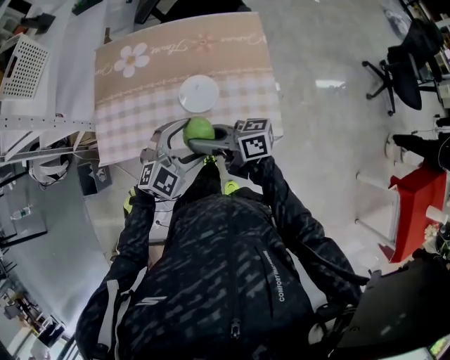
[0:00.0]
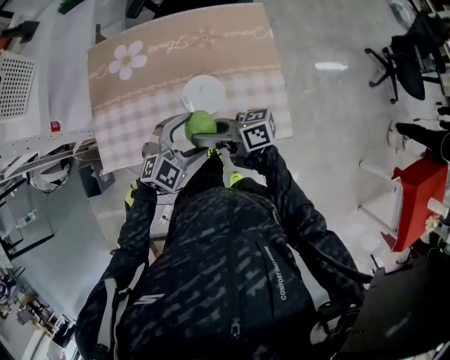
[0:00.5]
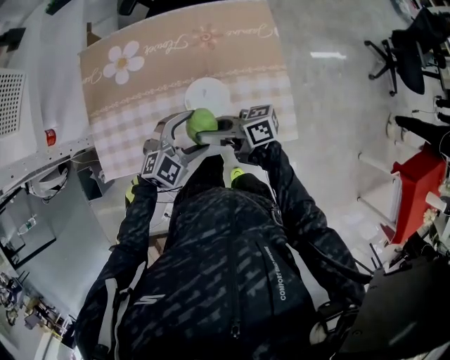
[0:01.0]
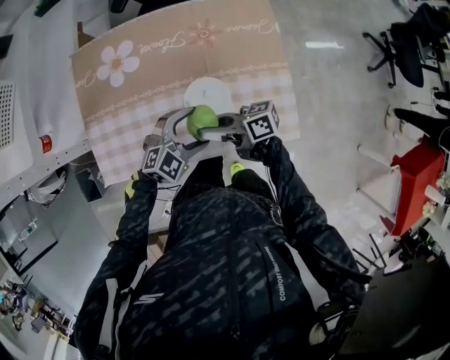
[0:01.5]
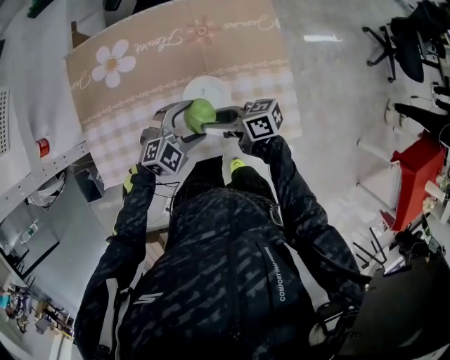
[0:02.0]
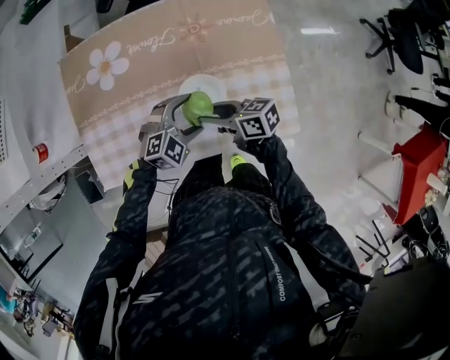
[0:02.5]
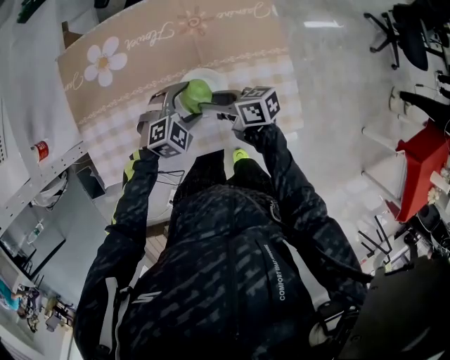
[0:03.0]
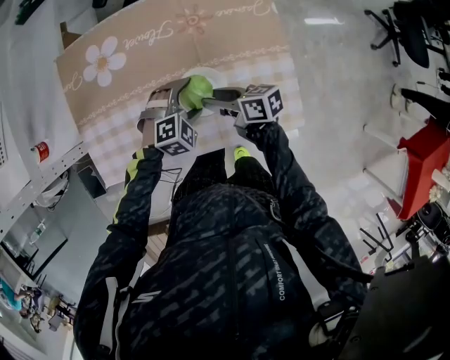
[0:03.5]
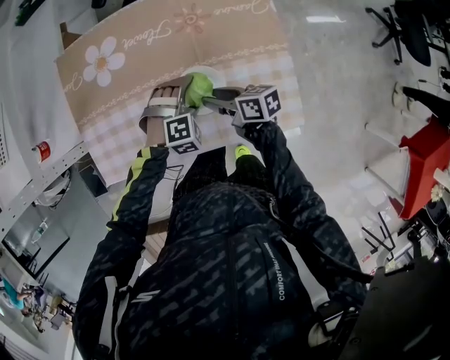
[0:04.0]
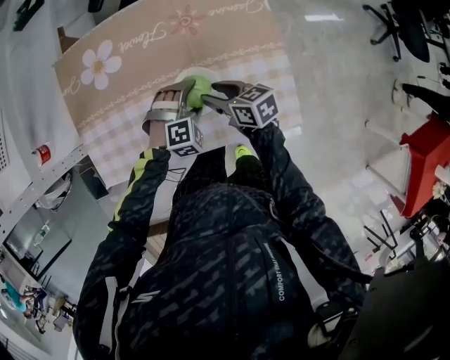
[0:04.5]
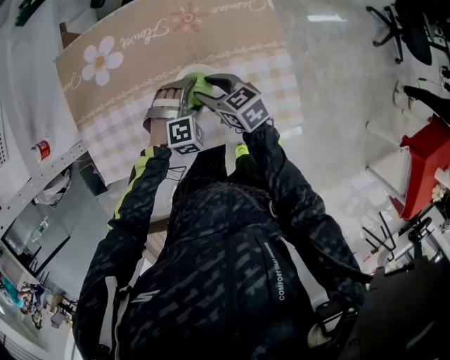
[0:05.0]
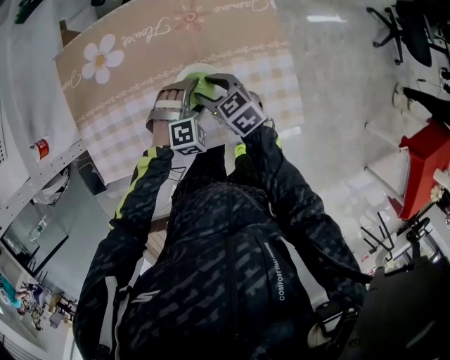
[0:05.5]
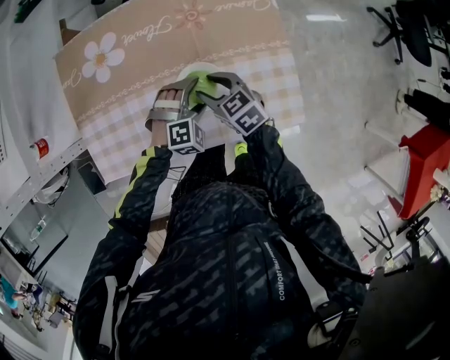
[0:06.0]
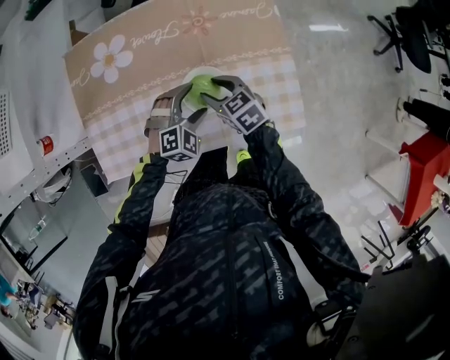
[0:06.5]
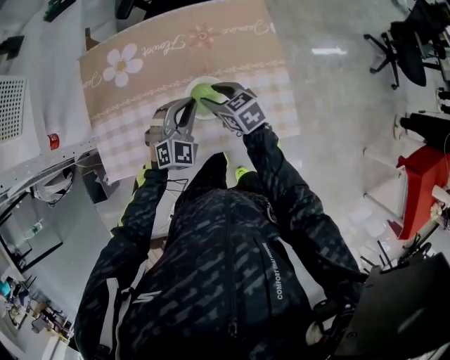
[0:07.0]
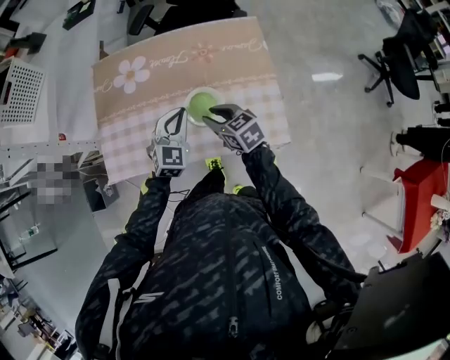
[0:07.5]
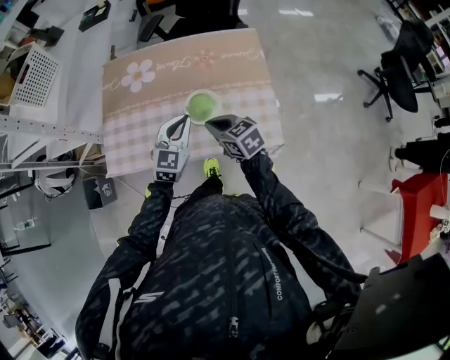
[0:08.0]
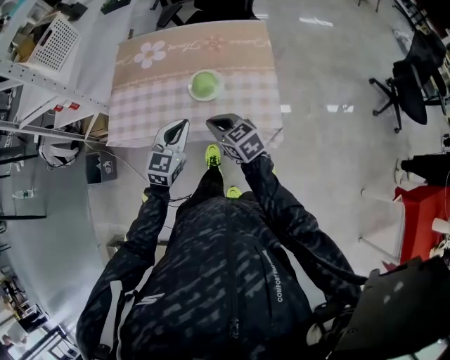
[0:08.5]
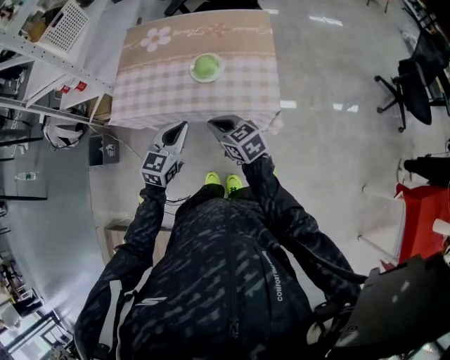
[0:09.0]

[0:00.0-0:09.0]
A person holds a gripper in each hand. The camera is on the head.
0:00.0 to 0:02.0: The grippers both shift downward by approximately 15 cm.
0:02.0 to 0:04.5: The left gripper travels downward by roughly 5 cm, and turns by roughly 30 degrees; the right gripper changes place by approximately 10 cm, and changes its angle by about 30 degrees.
0:04.5 to 0:07.0: The right gripper swivels approximately 20 degrees, while the left gripper is displaced upward by roughly 10 cm, tips its fingers upward by about 30 degrees, and closes its fingers.
0:07.0 to 0:09.0: Both grippers move backward, approximately 30 cm. The right gripper closes. The left gripper rolls counterclockwise, seen from behind, by approximately 40 degrees.

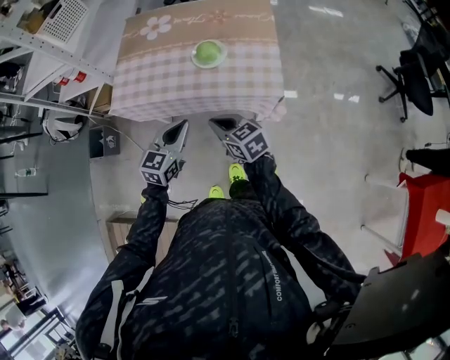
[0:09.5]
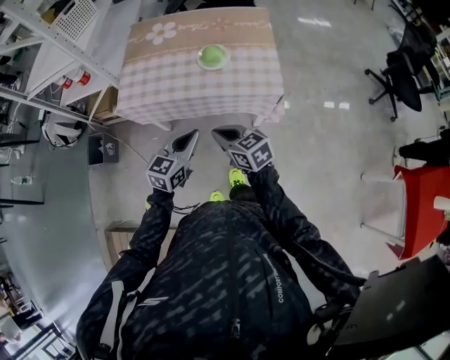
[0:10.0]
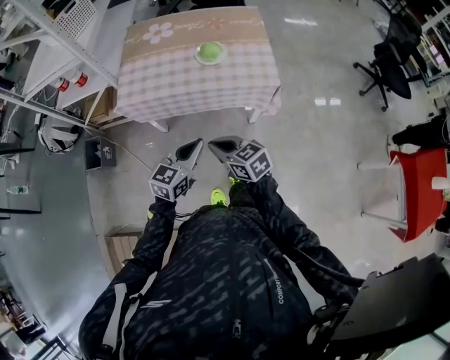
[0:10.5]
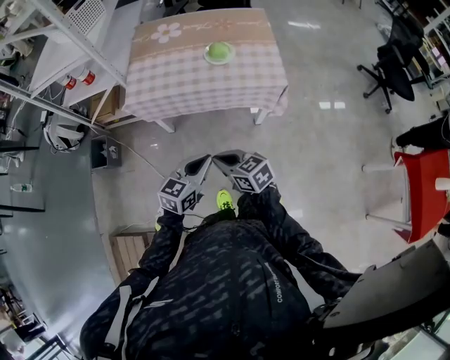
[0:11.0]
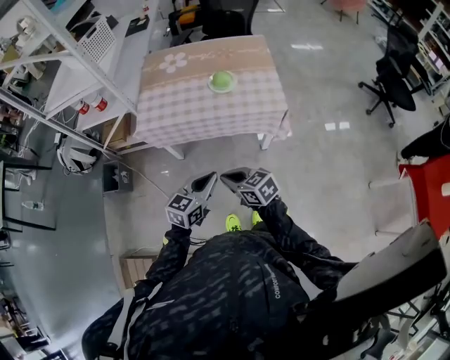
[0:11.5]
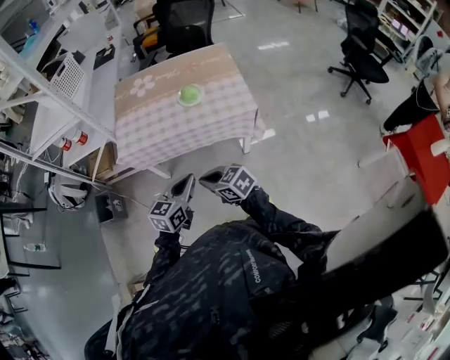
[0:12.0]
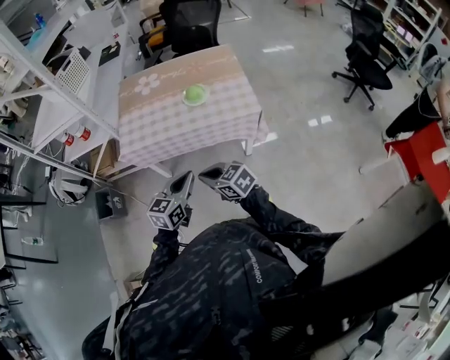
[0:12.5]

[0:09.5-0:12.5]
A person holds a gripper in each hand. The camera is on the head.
0:09.5 to 0:11.0: The right gripper is displaced backward and to the left by roughly 20 cm; the left gripper is displaced backward by about 20 cm.
0:11.0 to 0:12.5: The left gripper shifts by roughly 5 cm.

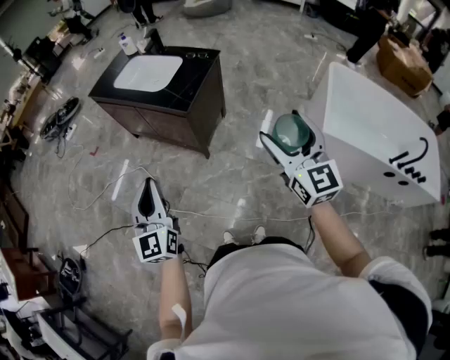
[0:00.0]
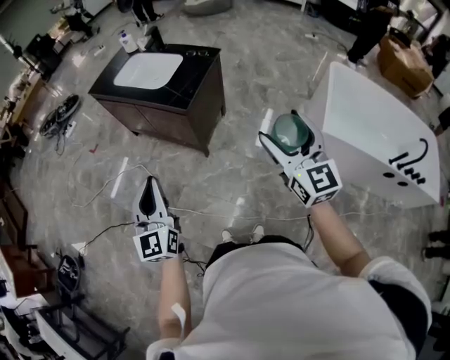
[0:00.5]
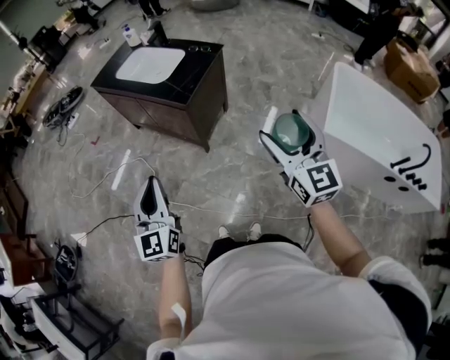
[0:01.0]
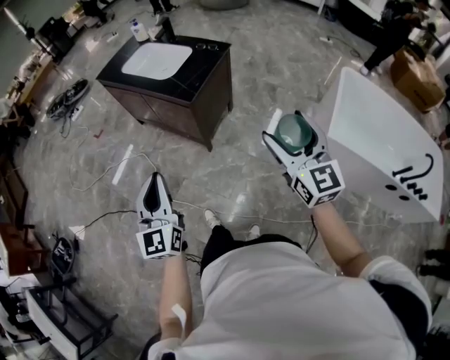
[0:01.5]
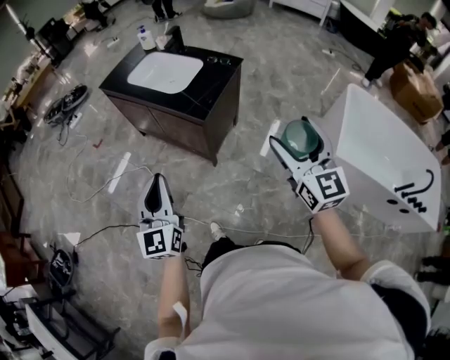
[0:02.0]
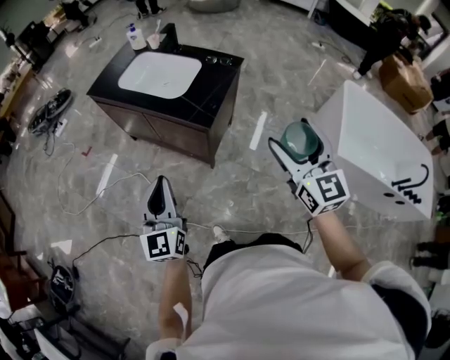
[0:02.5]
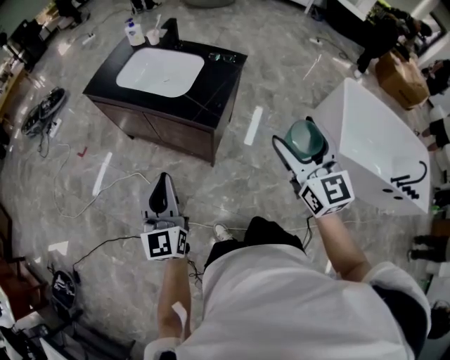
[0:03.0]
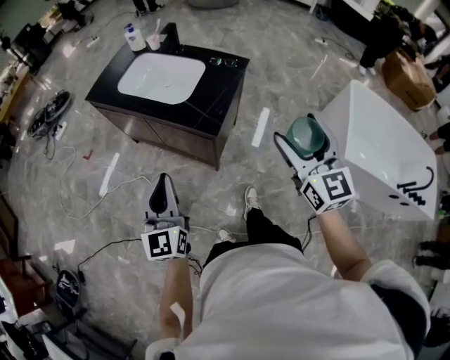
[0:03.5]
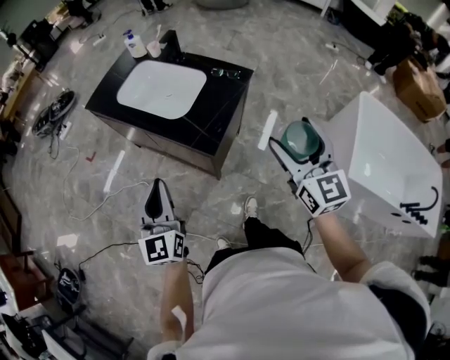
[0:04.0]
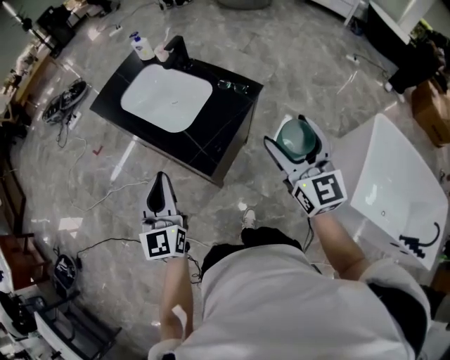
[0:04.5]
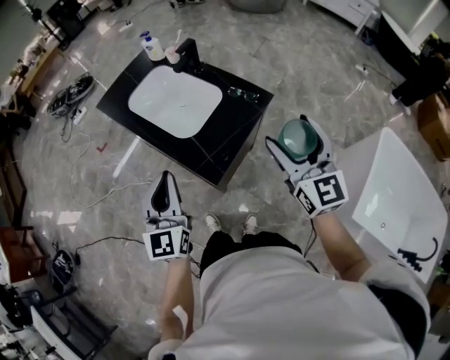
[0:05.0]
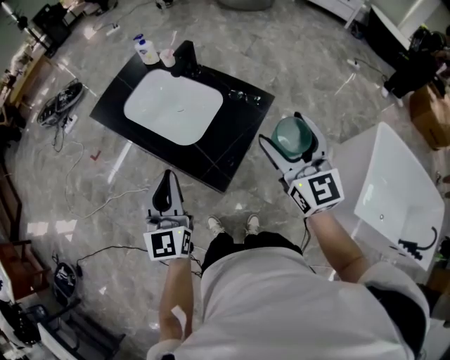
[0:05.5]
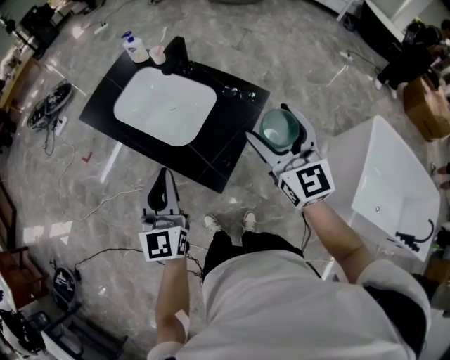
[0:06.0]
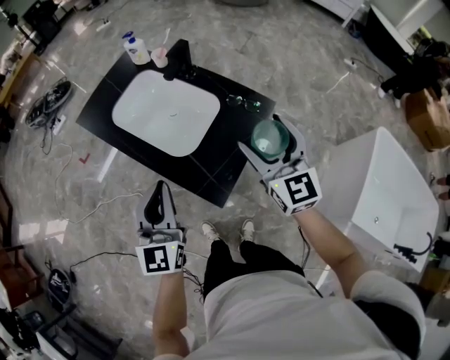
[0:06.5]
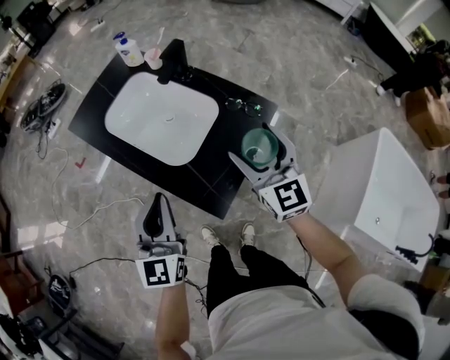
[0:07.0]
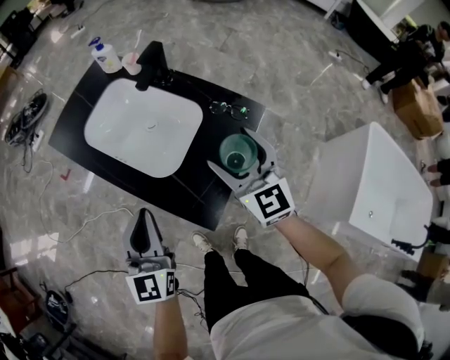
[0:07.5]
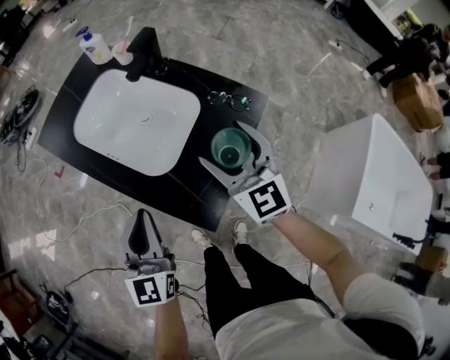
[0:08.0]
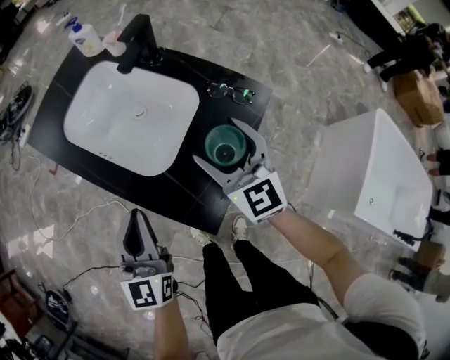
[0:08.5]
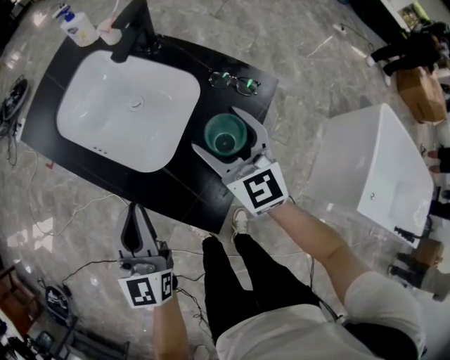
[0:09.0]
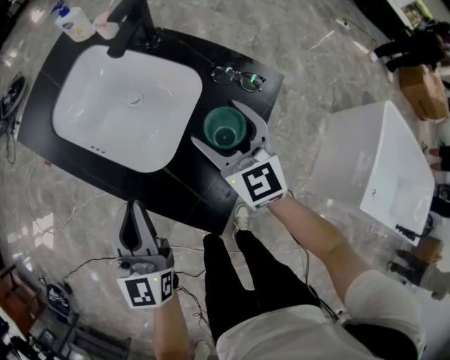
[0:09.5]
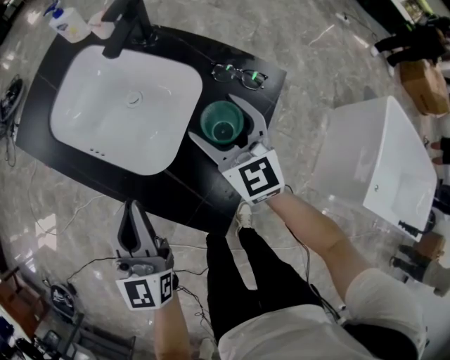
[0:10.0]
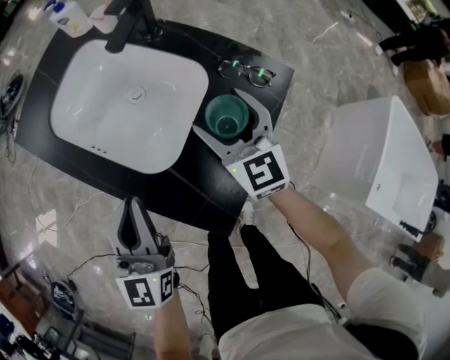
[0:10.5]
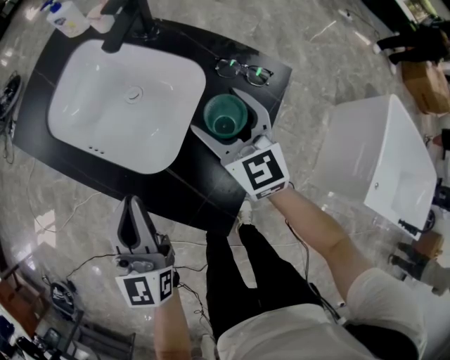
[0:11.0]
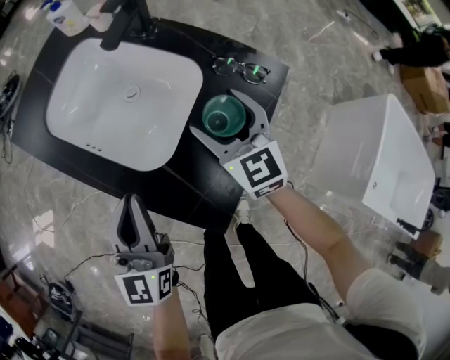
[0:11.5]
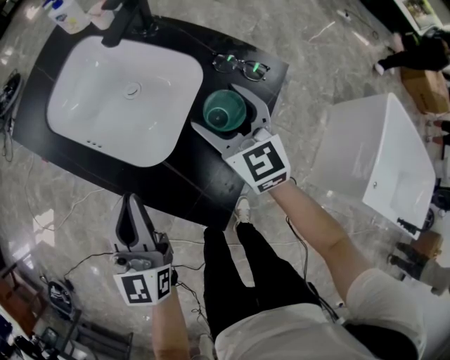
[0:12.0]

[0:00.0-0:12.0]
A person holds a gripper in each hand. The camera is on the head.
0:00.0 to 0:02.0: The two grippers go roughly 5 cm forward.
0:02.0 to 0:04.0: Both grippers travel together forward, about 20 cm.
0:04.0 to 0:06.0: Both grippers move forward, some 20 cm.
0:06.0 to 0:08.0: The right gripper is displaced downward and forward by approximately 20 cm. Meanwhile the left gripper goes about 10 cm downward and forward.
0:08.0 to 0:10.0: The left gripper moves about 5 cm. Meanwhile the right gripper heads downward and forward, covering roughly 10 cm.
0:10.0 to 0:12.0: The grippers move only a little.

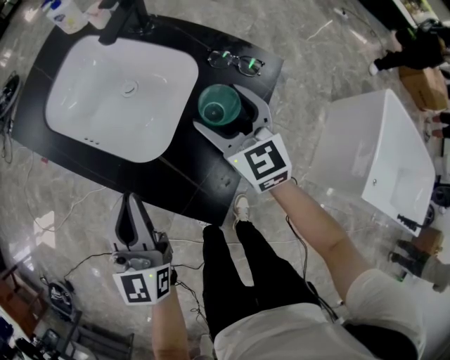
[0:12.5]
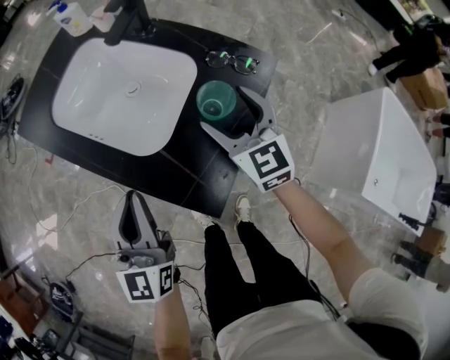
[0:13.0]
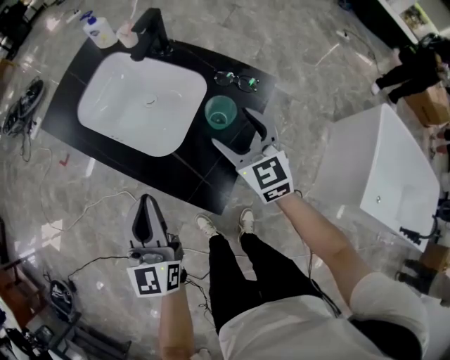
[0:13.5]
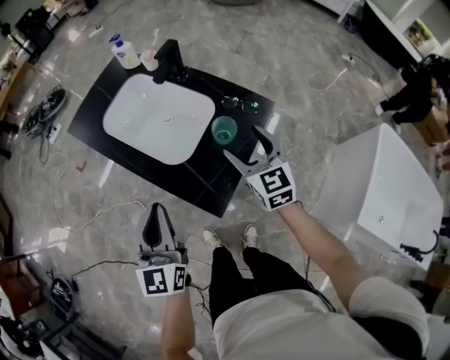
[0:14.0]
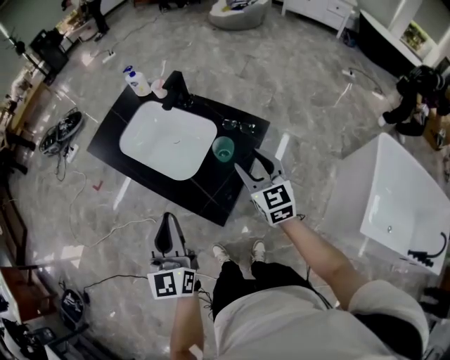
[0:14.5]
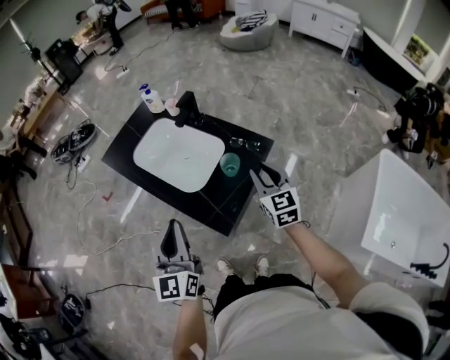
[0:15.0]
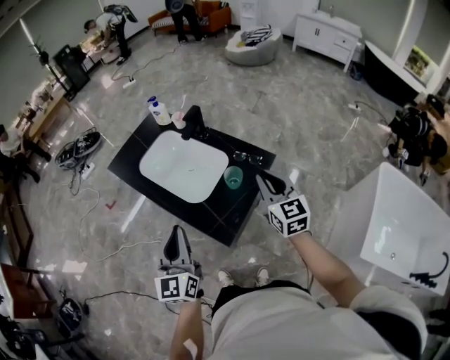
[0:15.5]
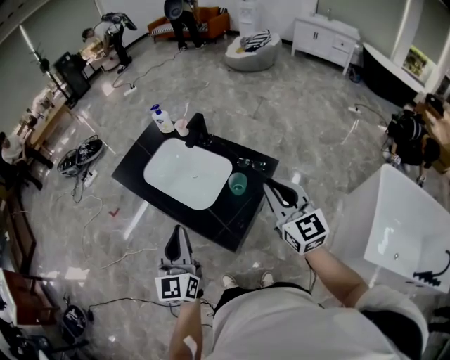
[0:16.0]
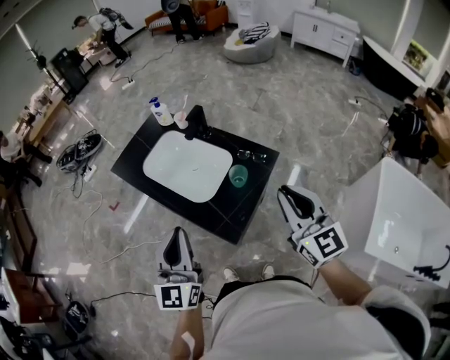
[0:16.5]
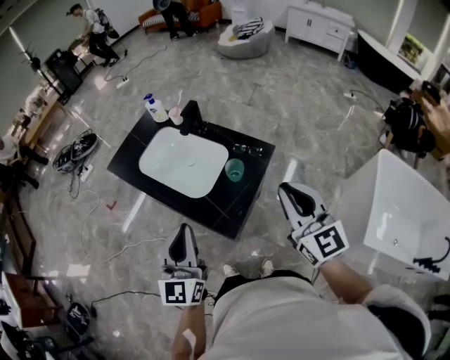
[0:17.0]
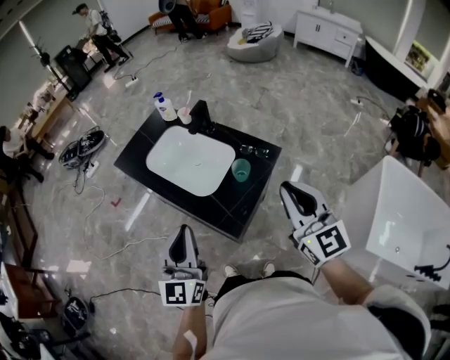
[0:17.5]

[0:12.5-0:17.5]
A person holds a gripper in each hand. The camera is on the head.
0:12.5 to 0:15.0: The left gripper moves upward and backward, approximately 20 cm. The right gripper moves upward, backward and to the right, approximately 20 cm, and closes.
0:15.0 to 0:17.5: The right gripper goes approximately 20 cm upward and backward.
